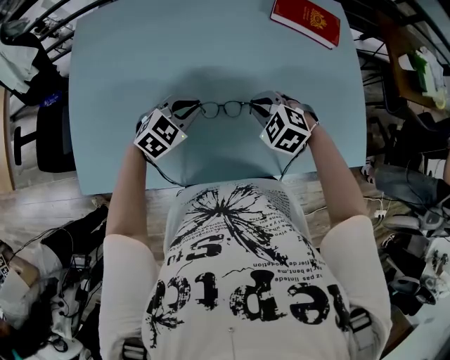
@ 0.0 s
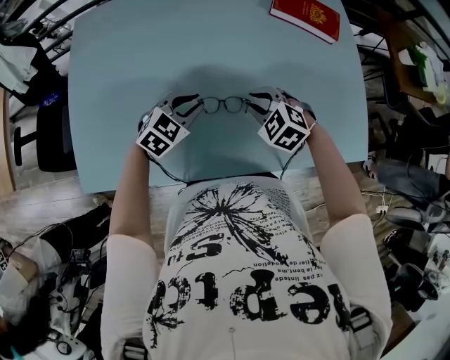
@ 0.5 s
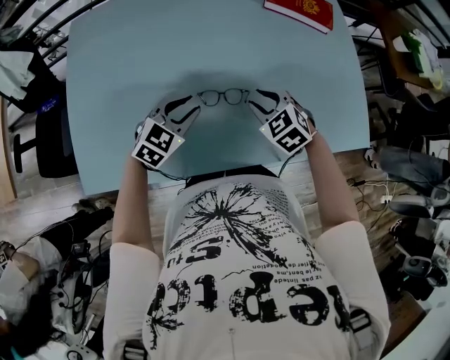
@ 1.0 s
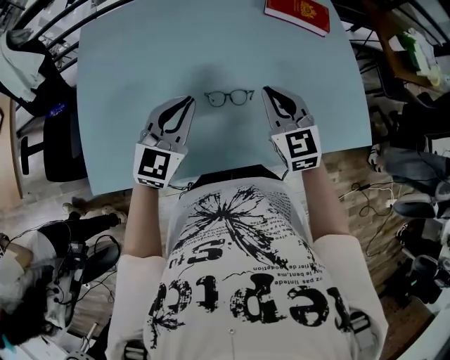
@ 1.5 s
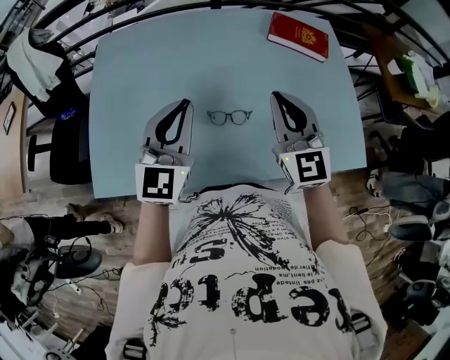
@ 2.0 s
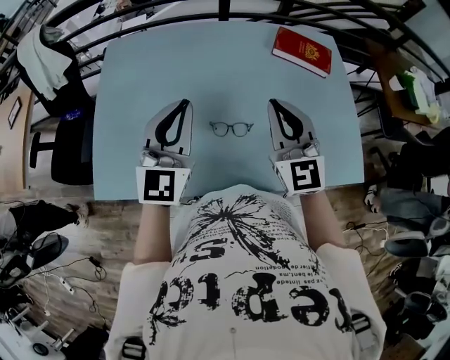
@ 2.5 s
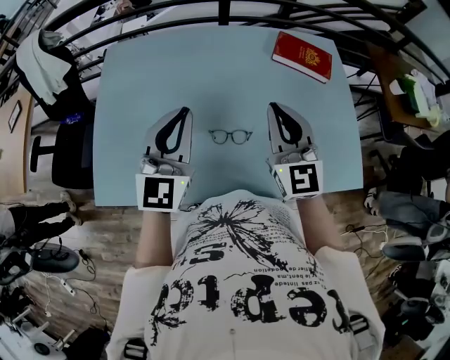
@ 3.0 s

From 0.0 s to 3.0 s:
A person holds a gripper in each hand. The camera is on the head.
From 0.0 s to 1.5 s: The left gripper travels upward and backward by about 15 cm, changes its angle by roughly 30 degrees, and opens, then closes once more. Meanwhile the right gripper goes some 10 cm upward, angles its fingers upward, by some 40 degrees, and opens, then closes once more.
From 1.5 s to 3.0 s: The two grippers go some 15 cm upward. The left gripper turns by about 20 degrees; the right gripper changes its angle by about 20 degrees.

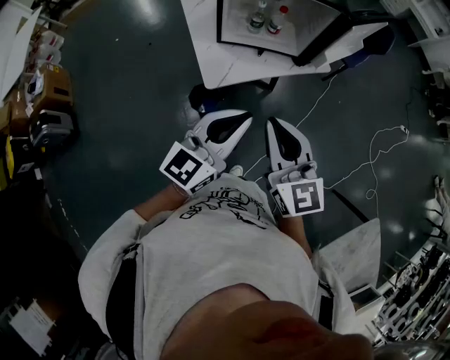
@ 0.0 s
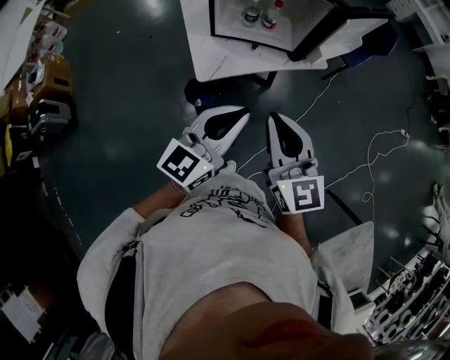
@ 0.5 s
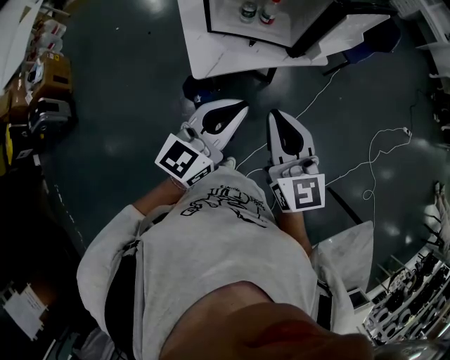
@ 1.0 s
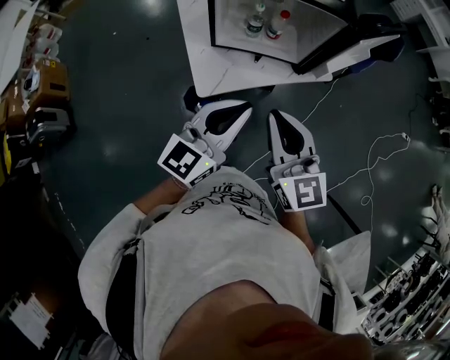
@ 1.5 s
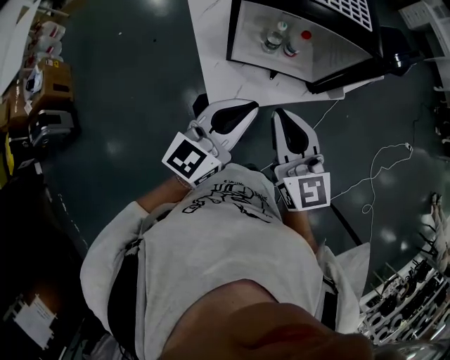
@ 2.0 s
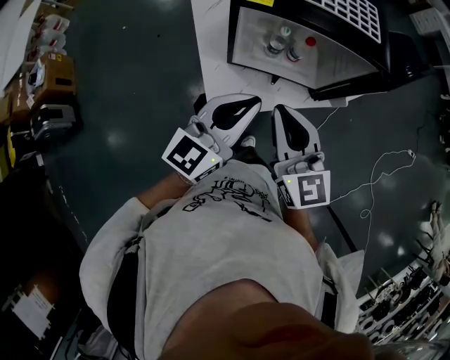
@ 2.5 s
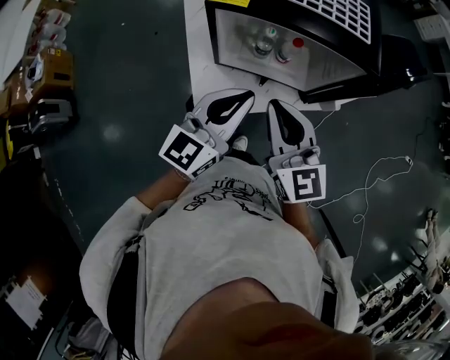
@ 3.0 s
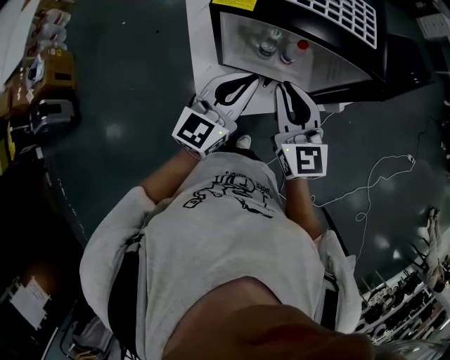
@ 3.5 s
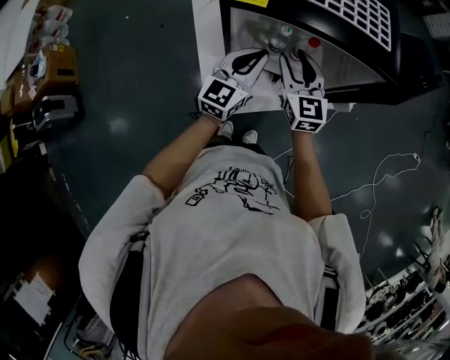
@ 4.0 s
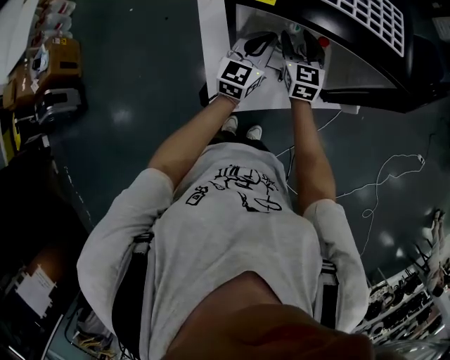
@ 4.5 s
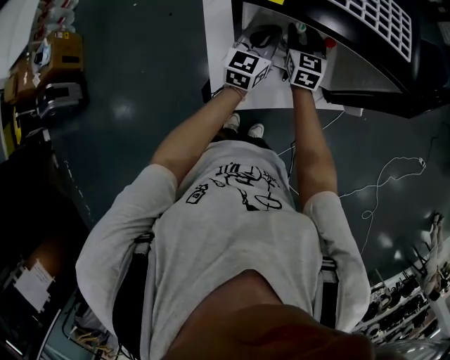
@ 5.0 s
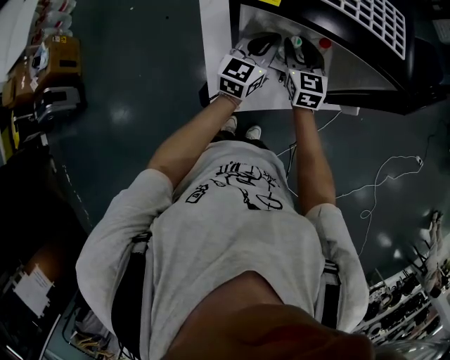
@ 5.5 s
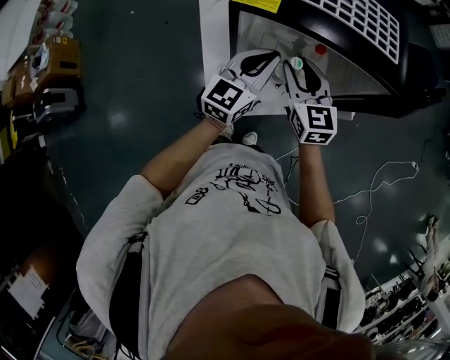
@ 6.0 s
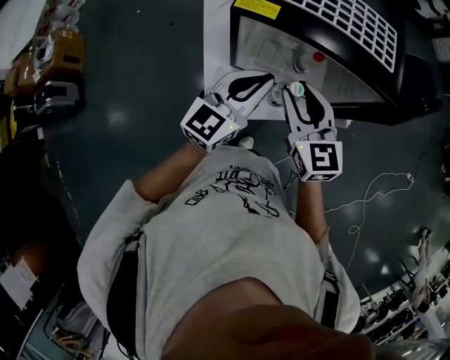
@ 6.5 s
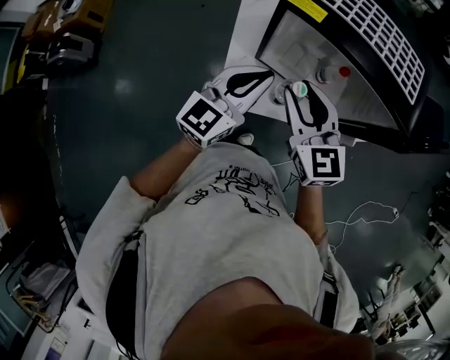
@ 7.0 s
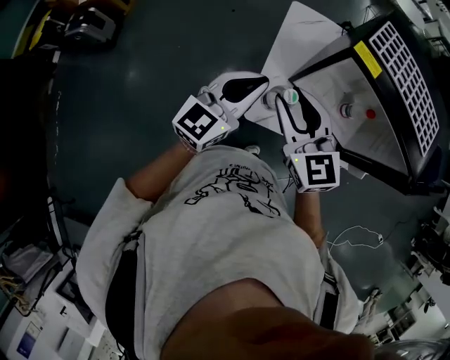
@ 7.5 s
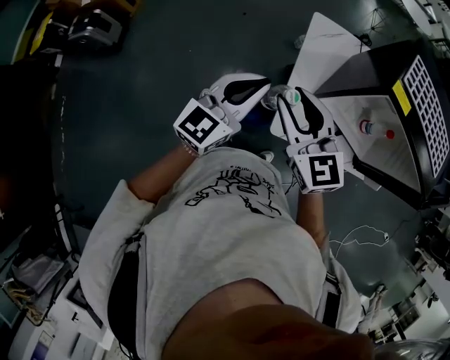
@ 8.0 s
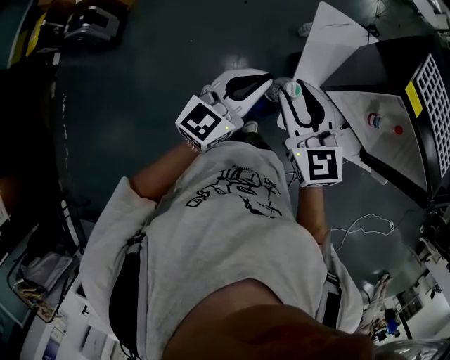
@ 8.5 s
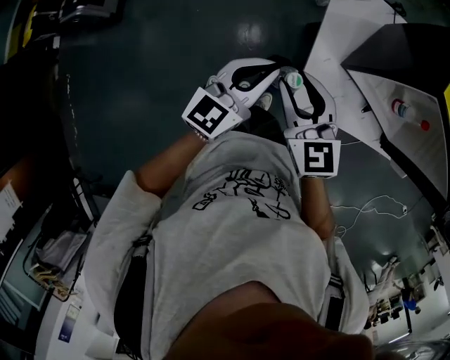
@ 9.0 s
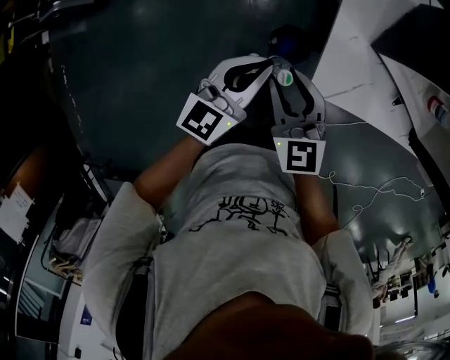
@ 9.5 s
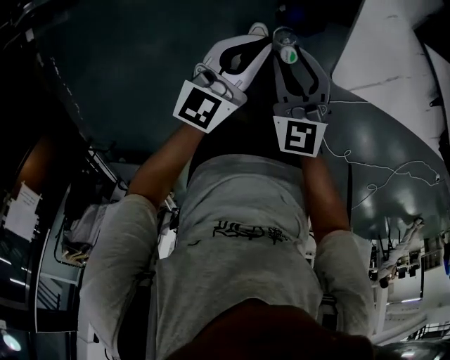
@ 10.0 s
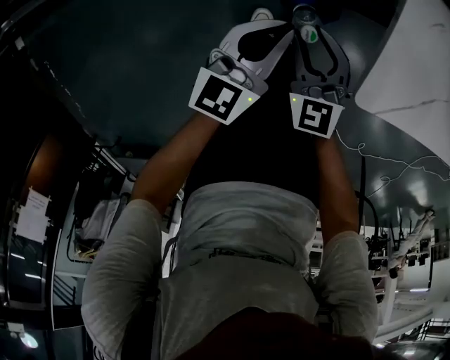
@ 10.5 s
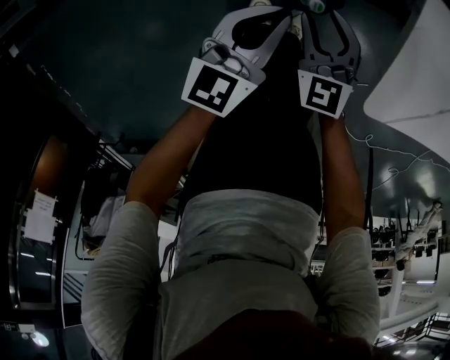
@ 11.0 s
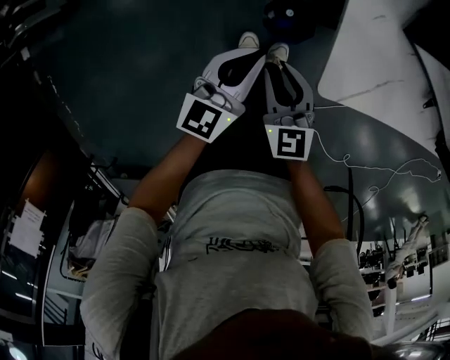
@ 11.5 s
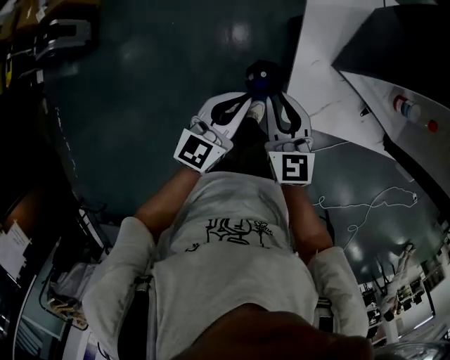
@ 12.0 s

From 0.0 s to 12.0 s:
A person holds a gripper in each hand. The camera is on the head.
From 0.0 s to 2.0 s: Both grippers move forward, approximately 20 cm.
From 2.0 s to 4.0 s: The two grippers go about 25 cm forward and downward. The right gripper opens up.
From 4.0 s to 6.0 s: The left gripper travels forward and back again, about 10 cm each way. The right gripper travels forward and back again, approximately 10 cm each way.
From 6.0 s to 8.0 s: The two grippers go some 35 cm to the left. The right gripper changes its angle by some 30 degrees.
From 8.0 s to 10.0 s: Both grippers move downward, some 40 cm. The left gripper rotates some 20 degrees.
From 10.0 s to 12.0 s: The two grippers go roughly 15 cm upward.

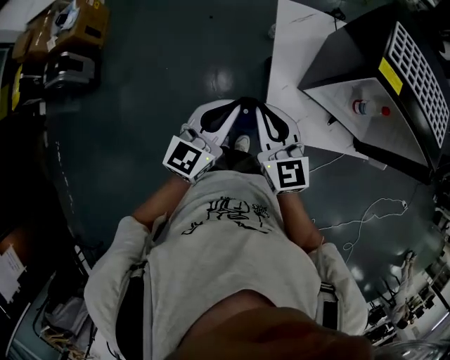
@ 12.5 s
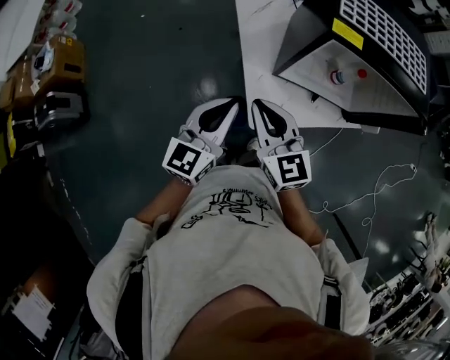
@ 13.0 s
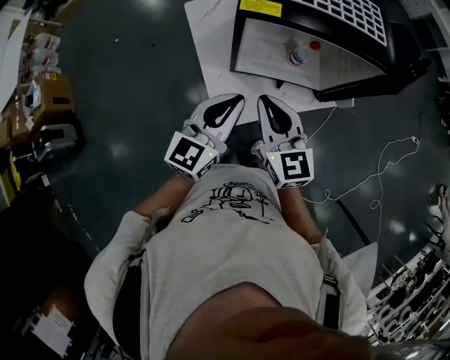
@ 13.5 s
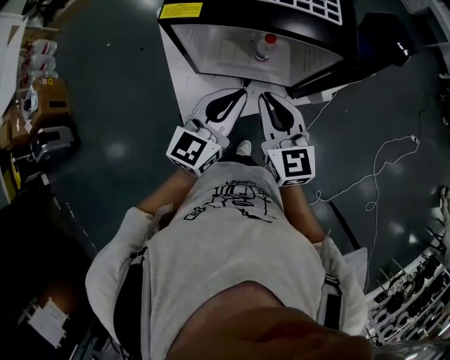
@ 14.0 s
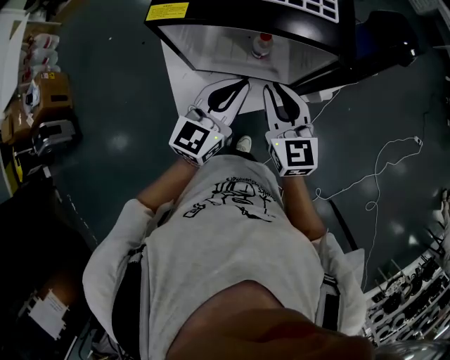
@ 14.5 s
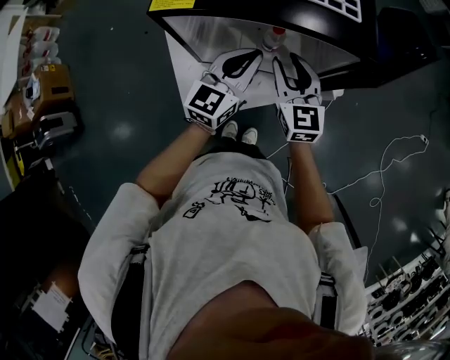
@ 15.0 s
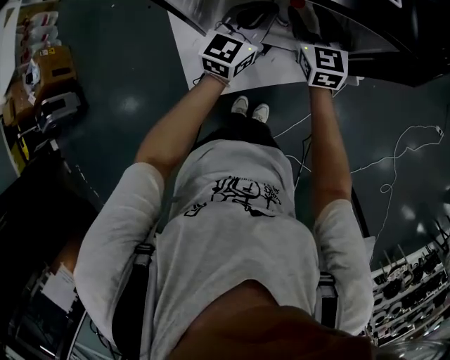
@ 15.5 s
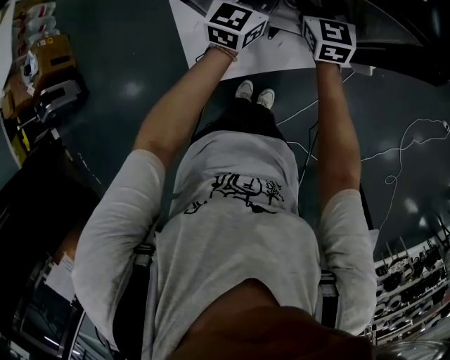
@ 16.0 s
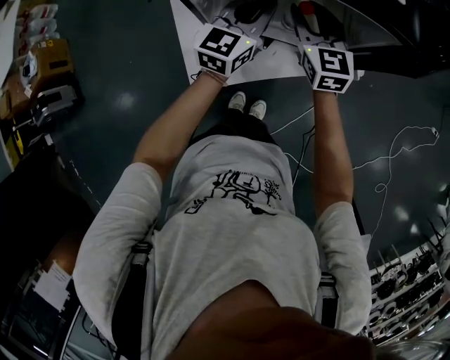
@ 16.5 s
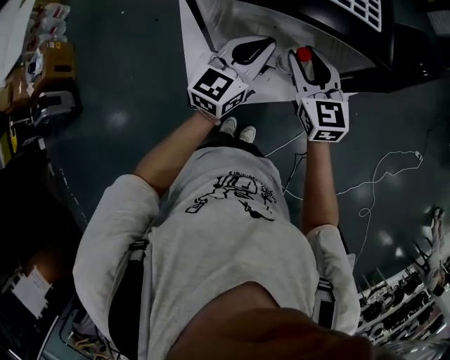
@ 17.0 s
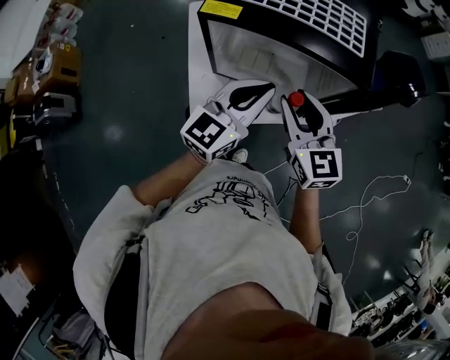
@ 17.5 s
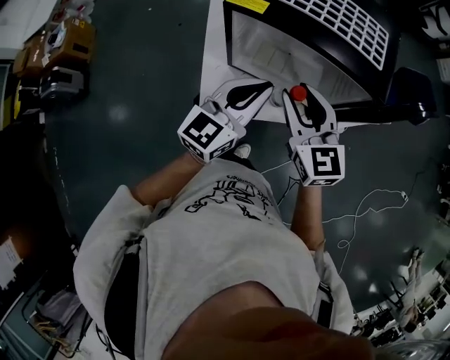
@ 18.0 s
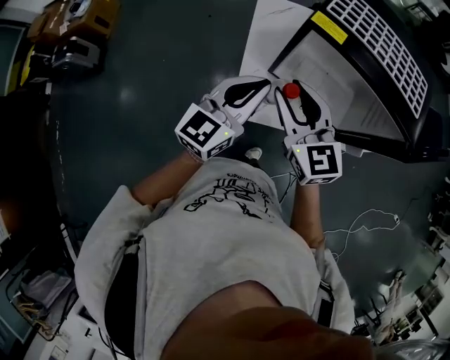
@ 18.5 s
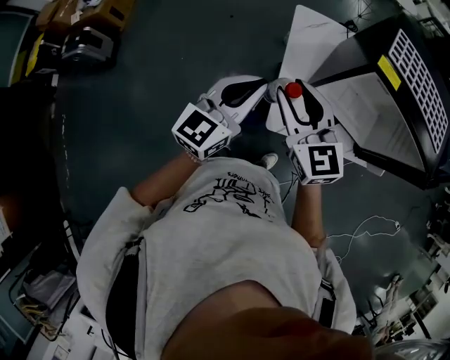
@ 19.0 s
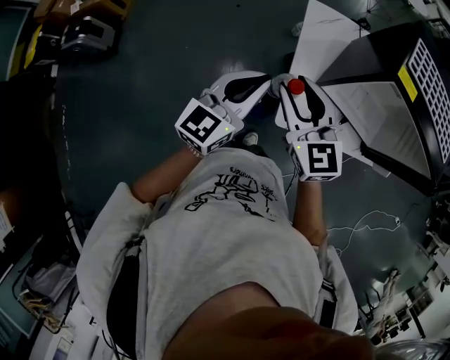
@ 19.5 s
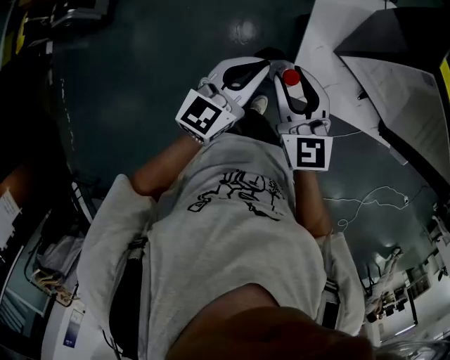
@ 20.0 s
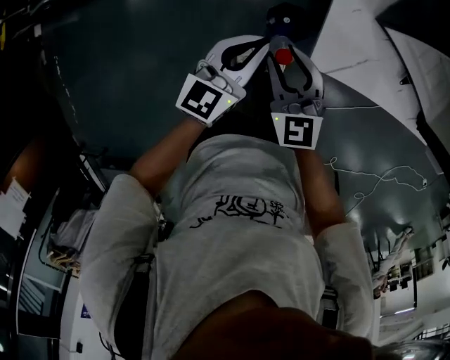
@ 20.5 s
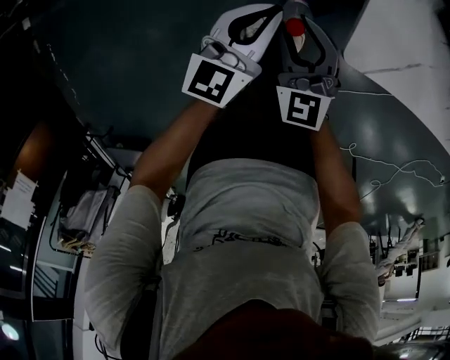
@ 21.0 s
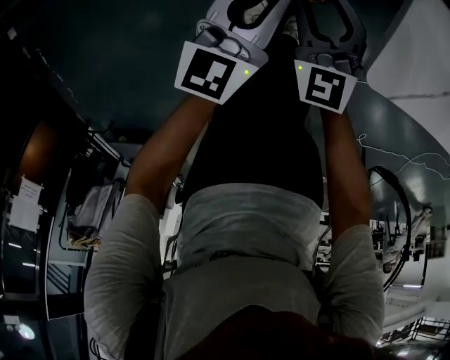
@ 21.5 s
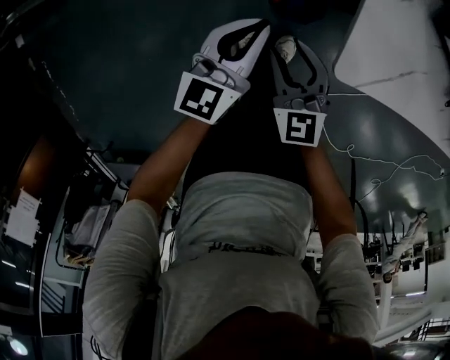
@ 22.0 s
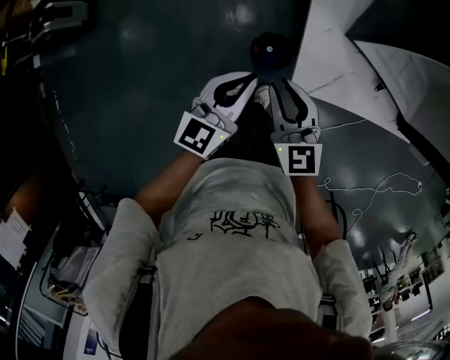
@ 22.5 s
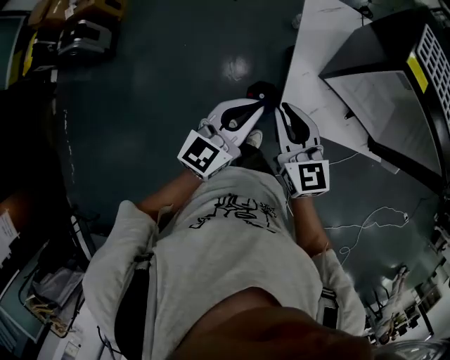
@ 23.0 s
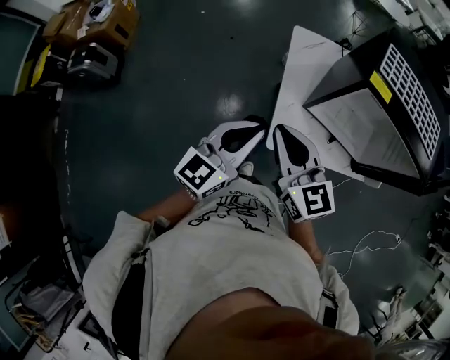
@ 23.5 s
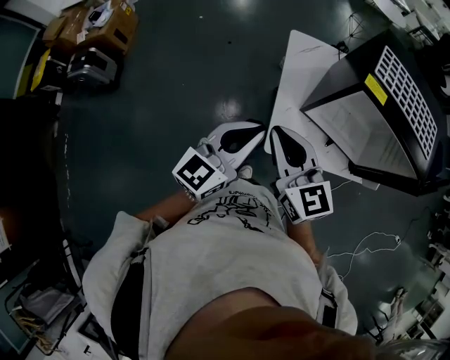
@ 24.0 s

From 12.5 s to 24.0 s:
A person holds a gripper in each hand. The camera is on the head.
From 12.5 s to 14.5 s: Both grippers are carried to the right, roughly 40 cm. The right gripper turns by roughly 20 degrees.
From 14.5 s to 16.5 s: Both grippers travel together forward and downward, some 15 cm. The right gripper opens.
From 16.5 s to 18.5 s: Both grippers travel together to the left, backward and upward, about 30 cm. The right gripper swivels some 30 degrees.
From 18.5 s to 20.0 s: The two grippers go some 25 cm to the left and downward.
From 20.0 s to 22.0 s: The grippers both shift downward by roughly 35 cm.
From 22.0 s to 24.0 s: The two grippers go about 50 cm upward. The left gripper turns by some 20 degrees. Meanwhile the right gripper changes its angle by approximately 20 degrees, and closes its fingers.
